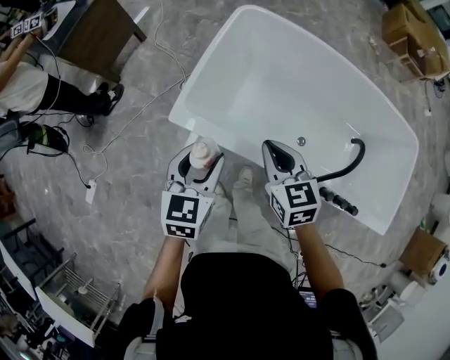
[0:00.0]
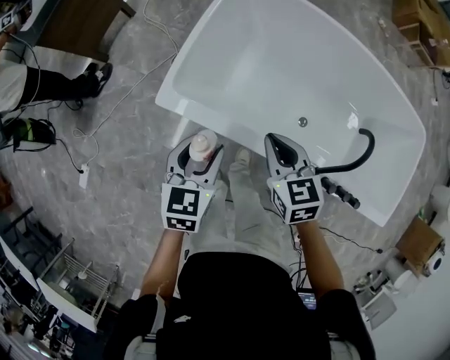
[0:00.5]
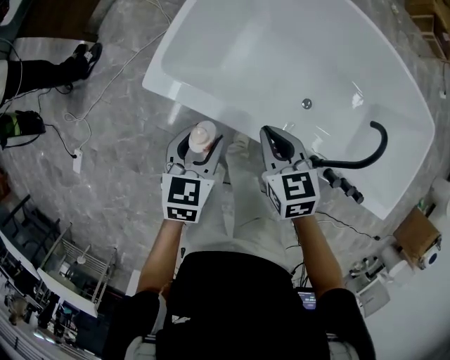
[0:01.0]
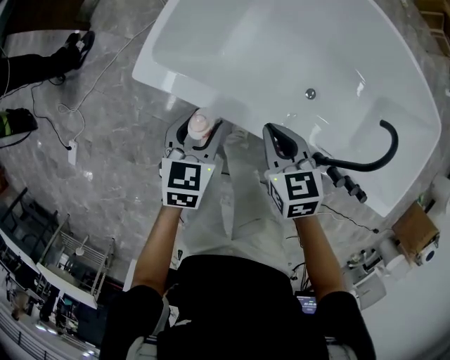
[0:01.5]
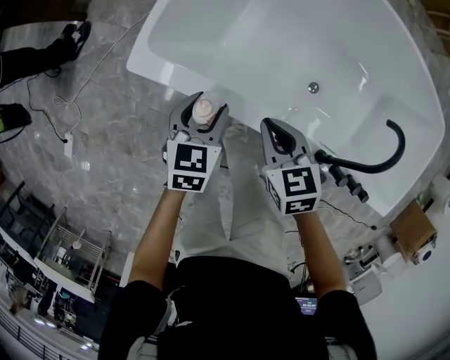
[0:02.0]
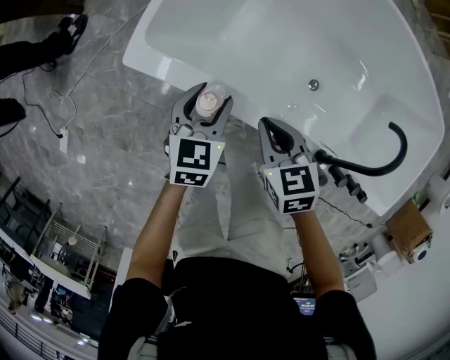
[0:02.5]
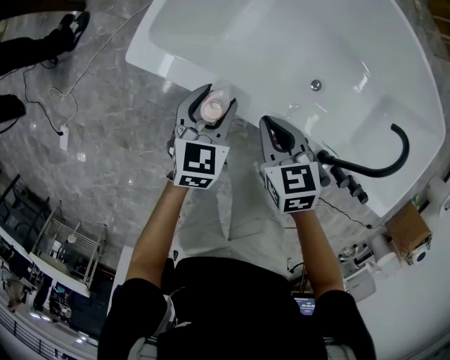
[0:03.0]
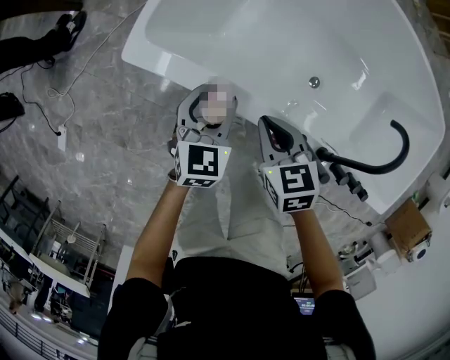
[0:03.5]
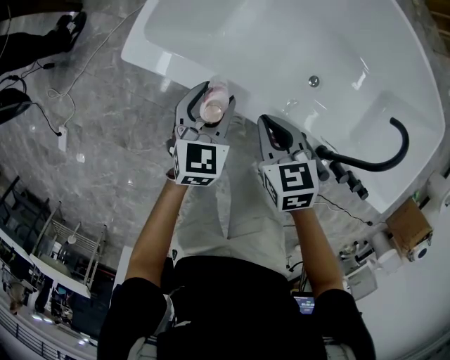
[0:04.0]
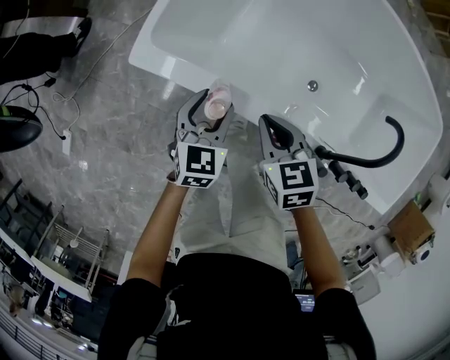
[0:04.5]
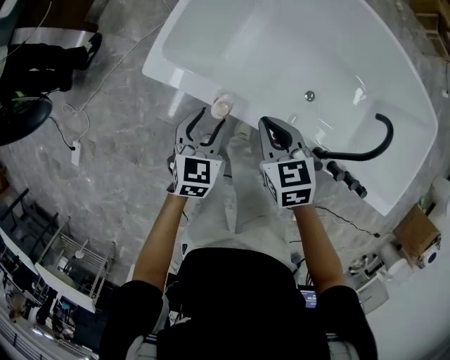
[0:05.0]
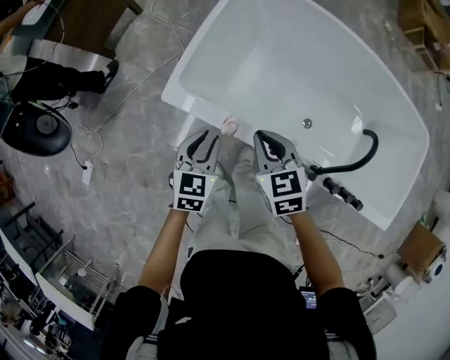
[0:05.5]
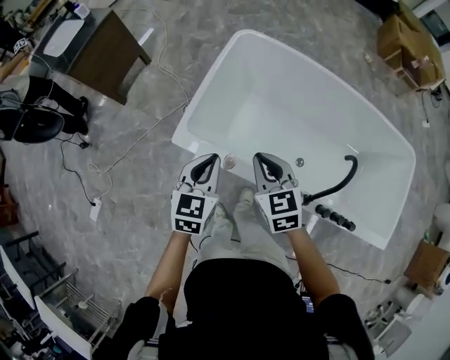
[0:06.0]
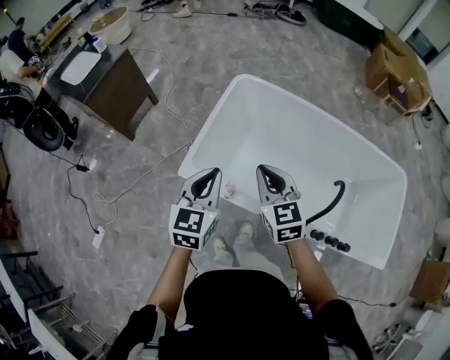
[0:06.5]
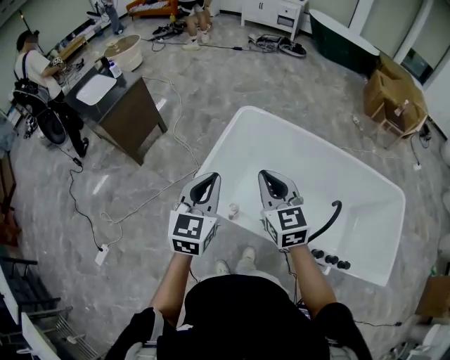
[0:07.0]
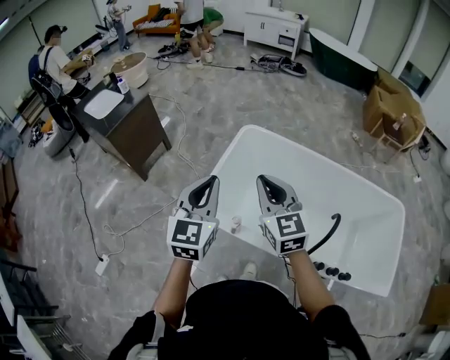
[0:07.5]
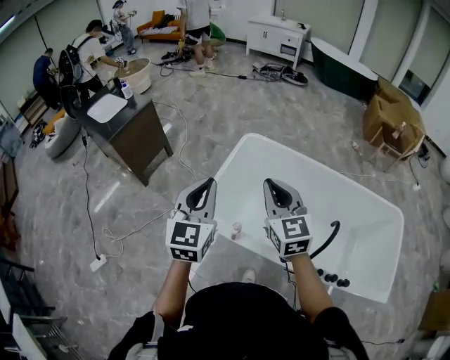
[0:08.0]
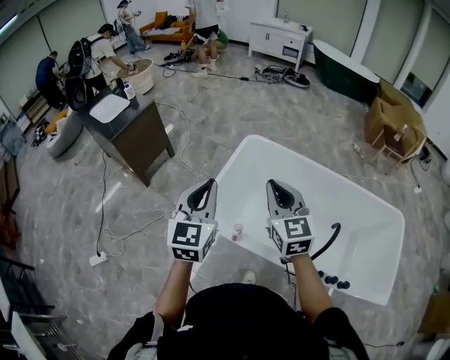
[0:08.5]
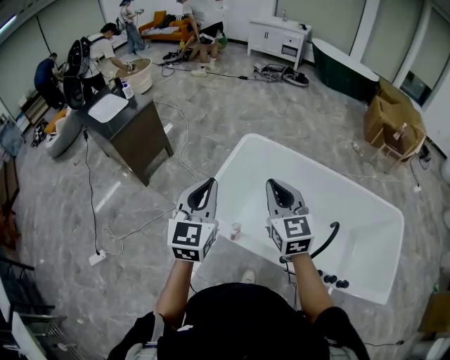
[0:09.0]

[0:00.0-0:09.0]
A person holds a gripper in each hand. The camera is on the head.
0:00.0 to 0:02.0: Both grippers travel together downward, some 25 cm.
0:02.0 to 0:04.5: The grippers stay close to where they were, moving slightly.
0:04.5 to 0:07.0: The two grippers go about 40 cm upward. The left gripper swivels about 30 degrees, and closes, while the right gripper points its fingers some 40 degrees further upward.
0:07.0 to 0:09.0: Both grippers travel together upward, about 5 cm.

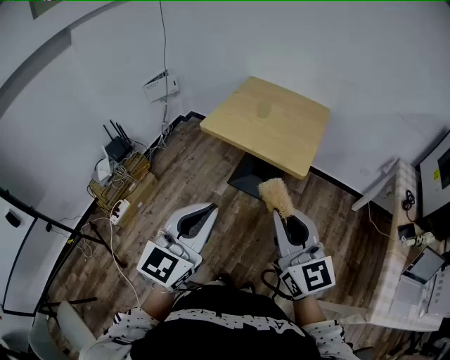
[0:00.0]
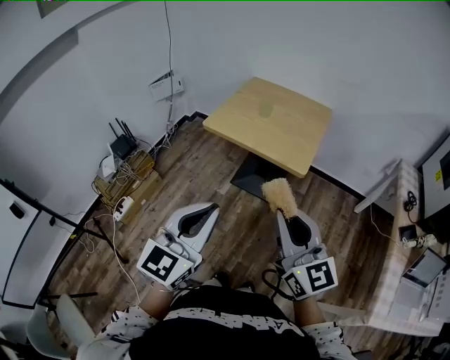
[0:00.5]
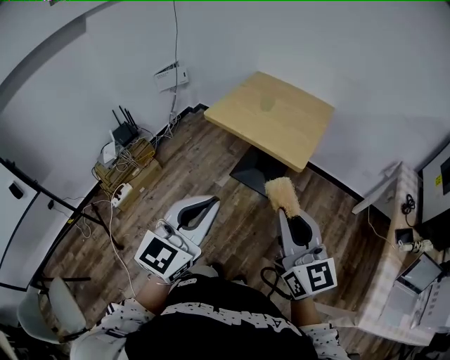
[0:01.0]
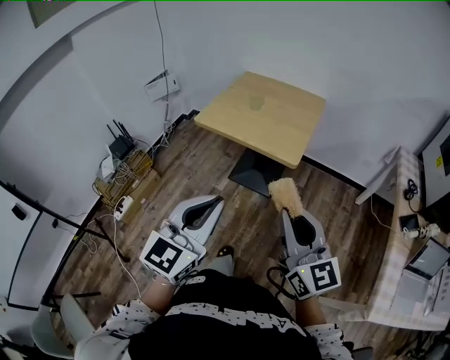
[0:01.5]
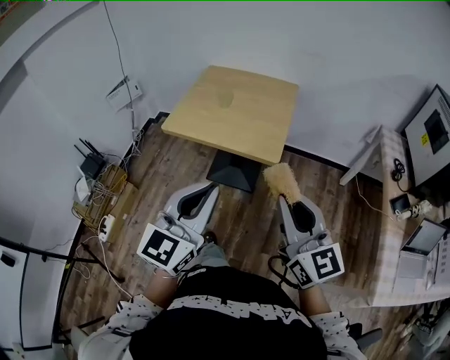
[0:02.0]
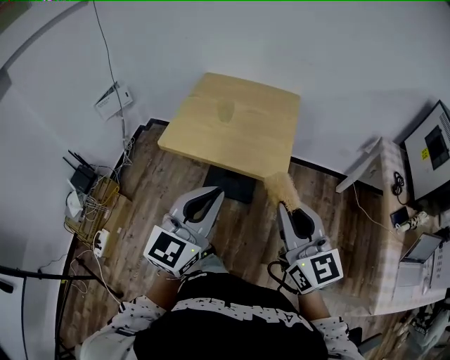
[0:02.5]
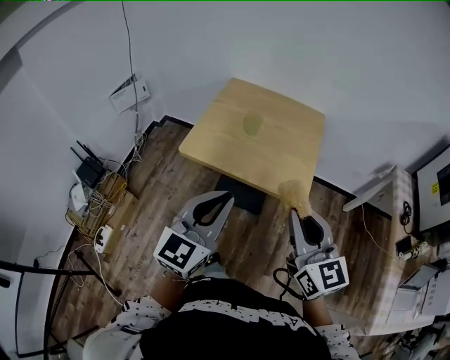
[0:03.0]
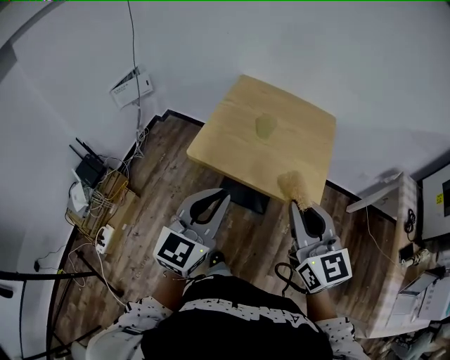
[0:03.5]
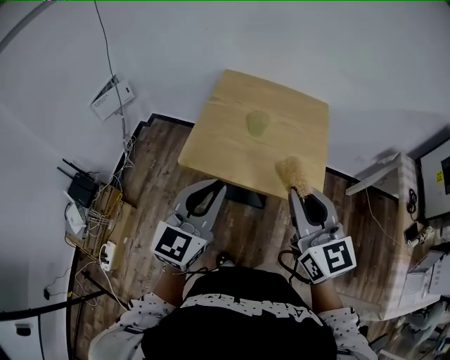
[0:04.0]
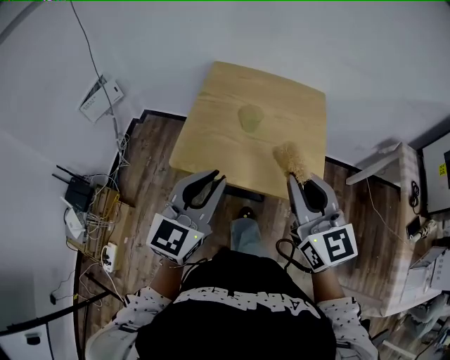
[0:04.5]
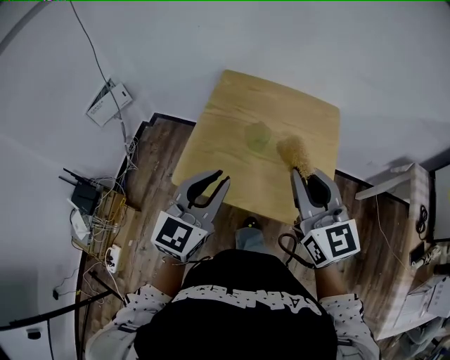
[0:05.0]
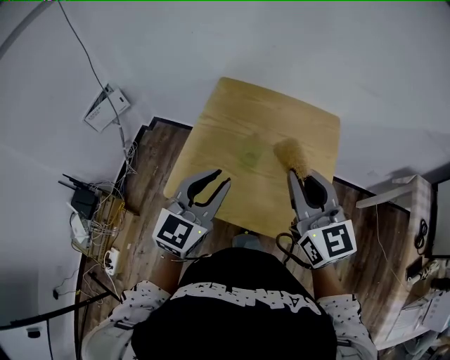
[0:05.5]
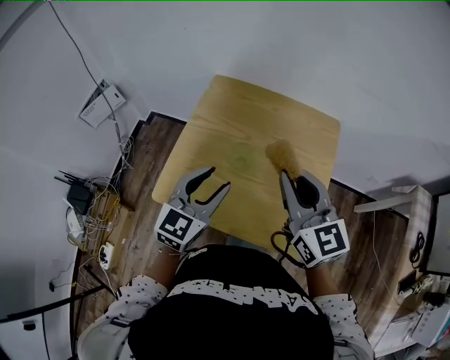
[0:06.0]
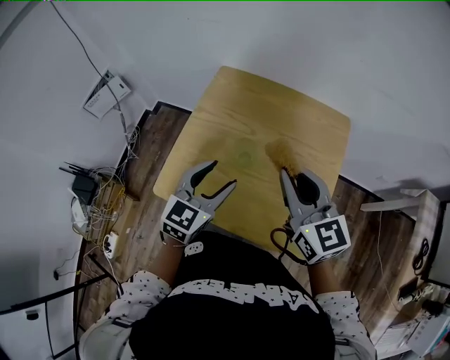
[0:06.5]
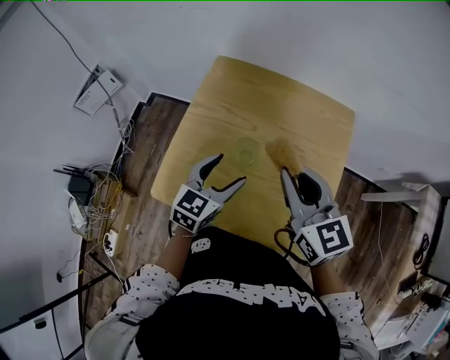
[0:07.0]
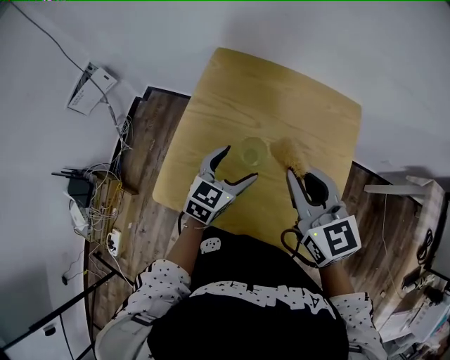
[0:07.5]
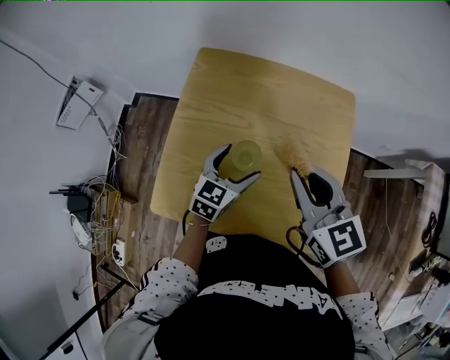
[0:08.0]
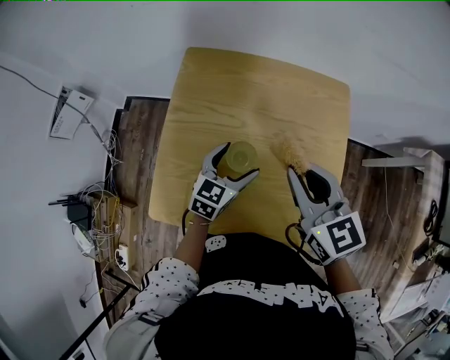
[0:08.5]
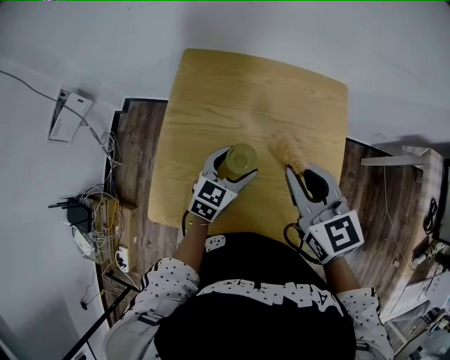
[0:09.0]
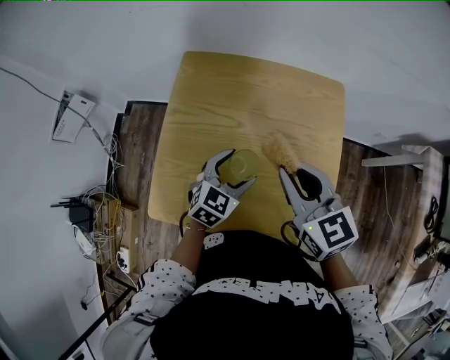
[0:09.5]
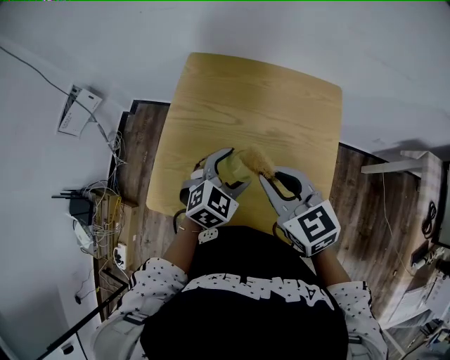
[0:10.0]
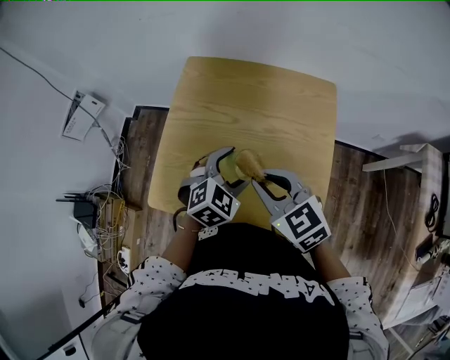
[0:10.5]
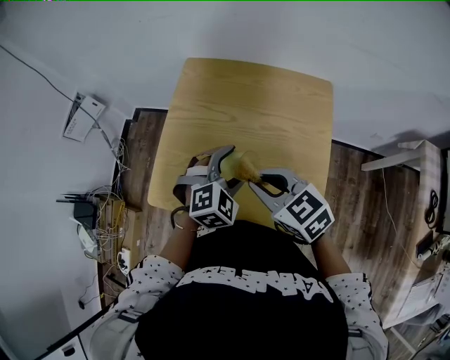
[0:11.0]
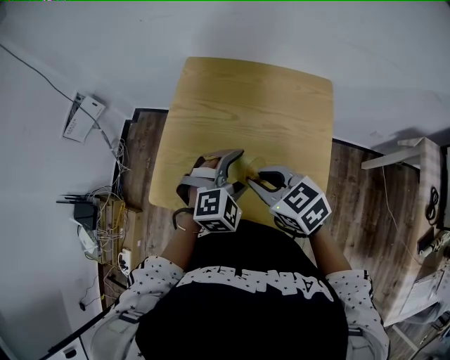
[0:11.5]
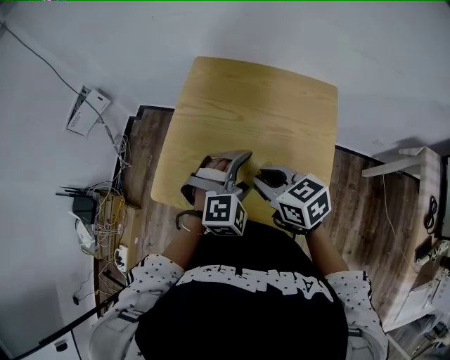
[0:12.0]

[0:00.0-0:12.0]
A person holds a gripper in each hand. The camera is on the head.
0:00.0 to 0:02.0: The right gripper heads to the right, covering approximately 10 cm. Meanwhile the left gripper is displaced to the right and forward by about 15 cm.
0:02.0 to 0:04.0: Both grippers travel together forward and to the left, roughly 30 cm.
0:04.0 to 0:06.0: Both grippers move forward, roughly 25 cm. The left gripper opens up.
0:06.0 to 0:08.0: The left gripper is displaced downward and forward by about 20 cm, and opens; the right gripper heads downward and forward, covering some 10 cm.
0:08.0 to 0:10.0: The right gripper ends up about 5 cm from where it was; the left gripper moves some 5 cm, and rotates some 30 degrees.
0:10.0 to 0:12.0: The right gripper shifts by some 5 cm, while the left gripper shifts about 5 cm backward, and swivels about 30 degrees.

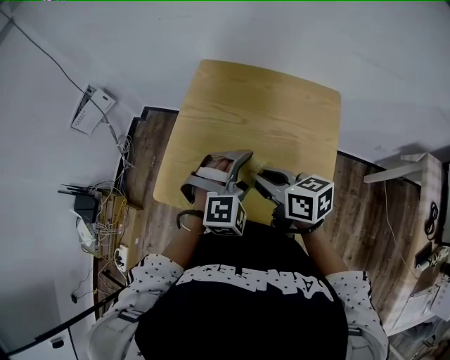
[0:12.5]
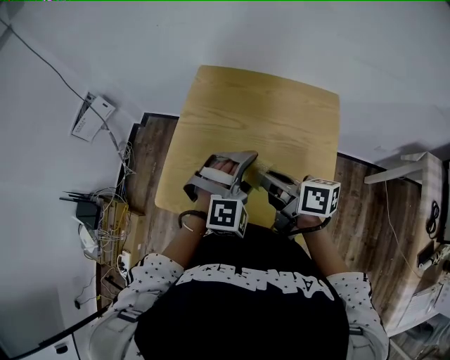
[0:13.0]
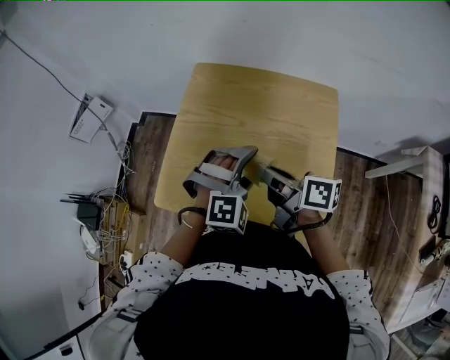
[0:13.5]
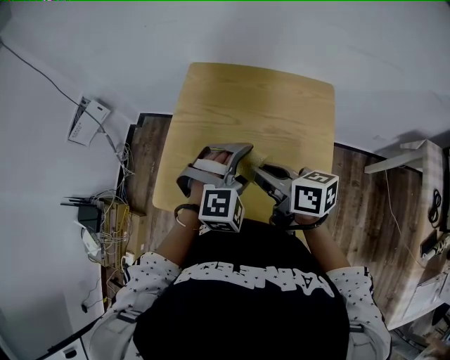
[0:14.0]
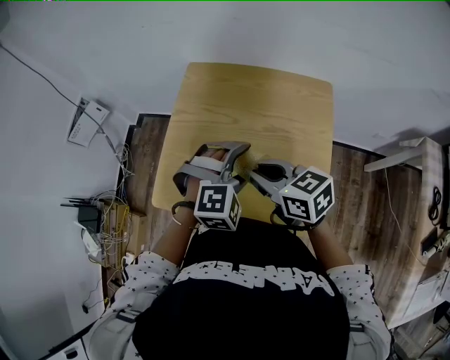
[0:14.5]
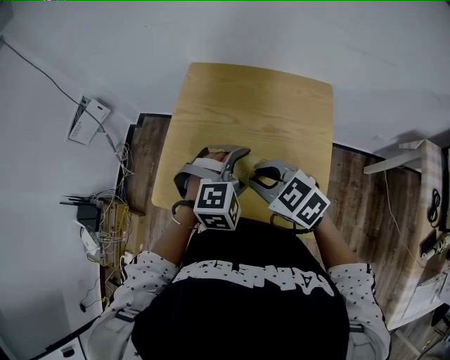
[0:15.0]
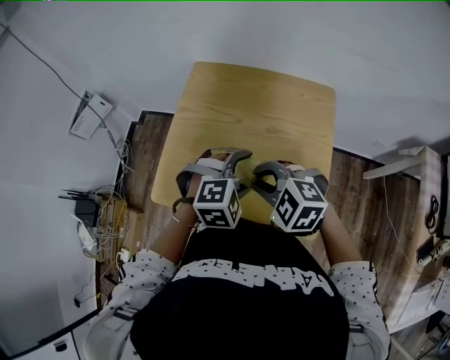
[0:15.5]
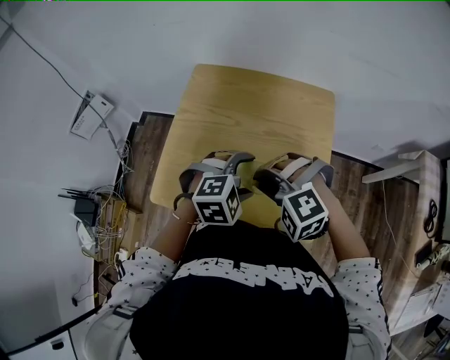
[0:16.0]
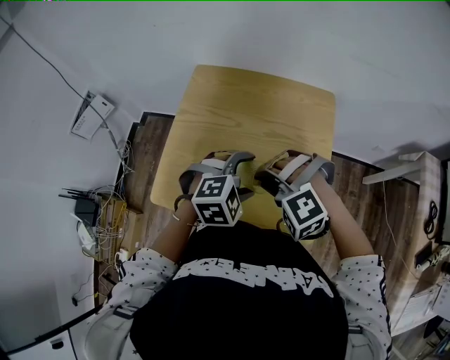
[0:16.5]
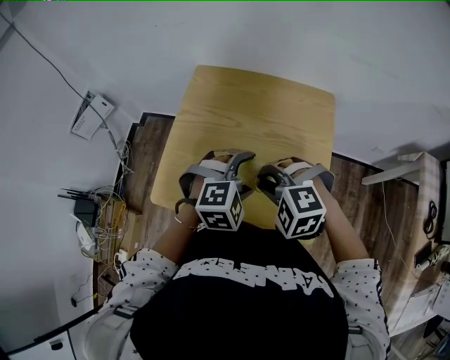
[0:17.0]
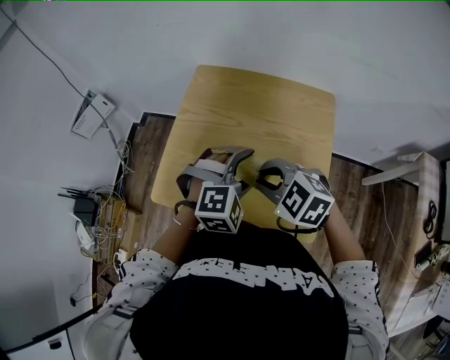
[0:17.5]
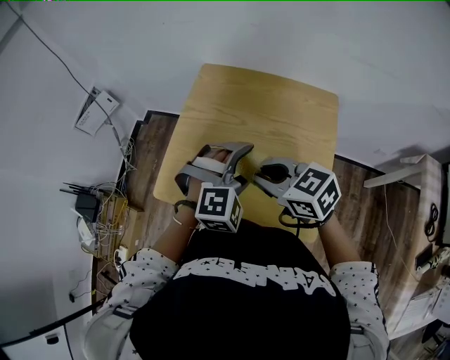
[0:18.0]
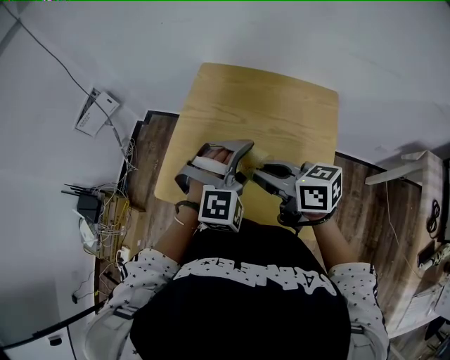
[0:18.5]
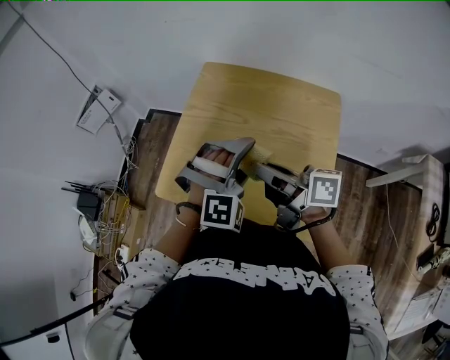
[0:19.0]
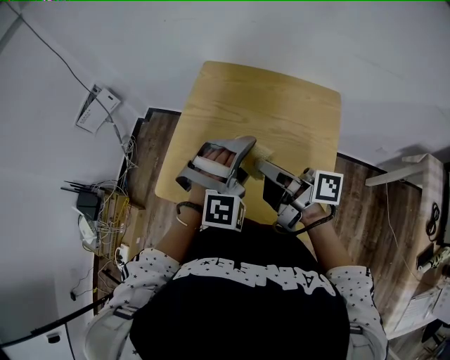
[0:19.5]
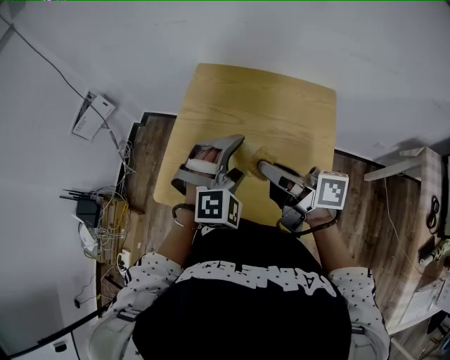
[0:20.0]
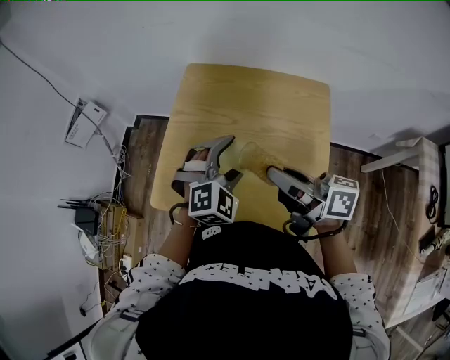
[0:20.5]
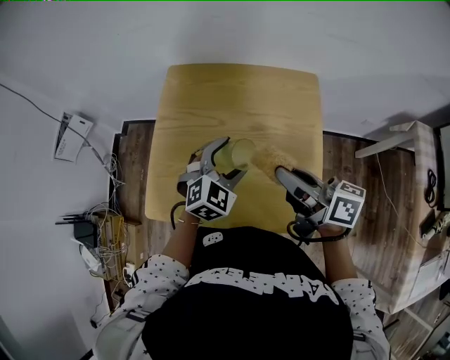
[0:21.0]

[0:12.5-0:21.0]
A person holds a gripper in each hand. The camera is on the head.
0:14.5 to 0:16.5: The right gripper twists approximately 90 degrees counterclockwise, seen from behind.
0:16.5 to 0:19.0: The right gripper is displaced upward by roughly 5 cm, and rotates around the line of its fingers by about 110 degrees, clockwise from behind, while the left gripper ends up some 5 cm from where it was, and rotates about 40 degrees.
0:19.0 to 0:21.0: The right gripper heads to the right, covering approximately 10 cm. The left gripper moves downward, approximately 5 cm, and rotates about 40 degrees.
